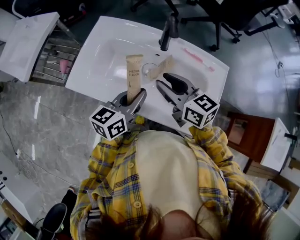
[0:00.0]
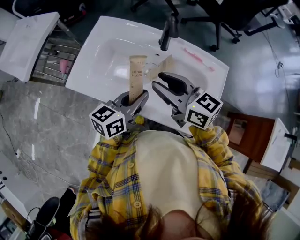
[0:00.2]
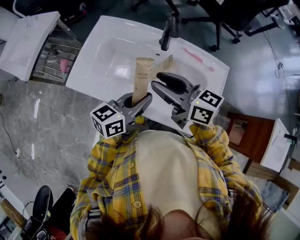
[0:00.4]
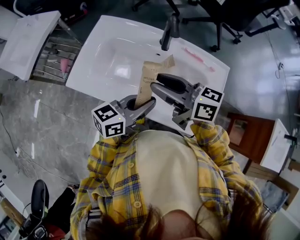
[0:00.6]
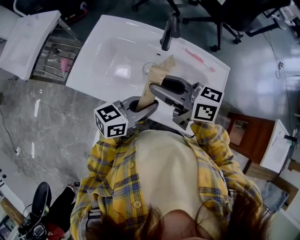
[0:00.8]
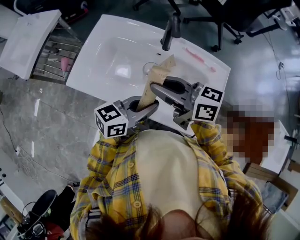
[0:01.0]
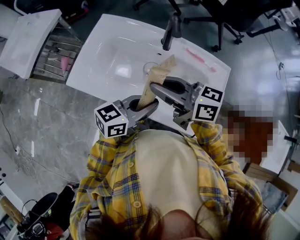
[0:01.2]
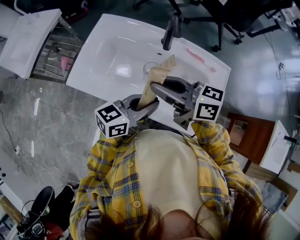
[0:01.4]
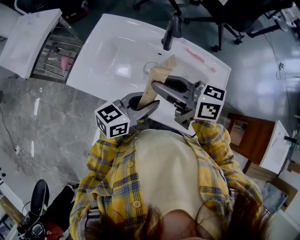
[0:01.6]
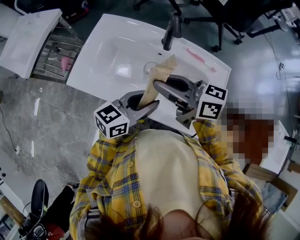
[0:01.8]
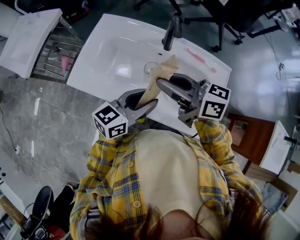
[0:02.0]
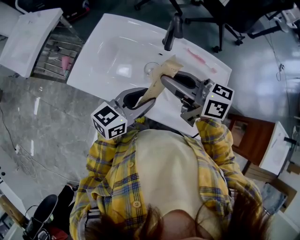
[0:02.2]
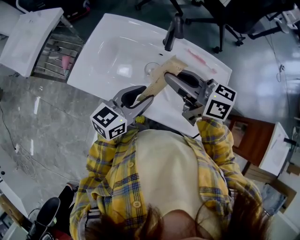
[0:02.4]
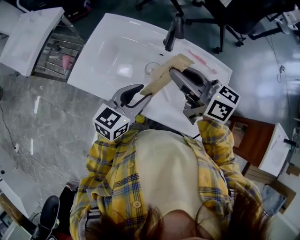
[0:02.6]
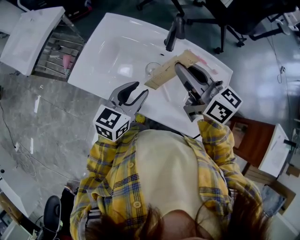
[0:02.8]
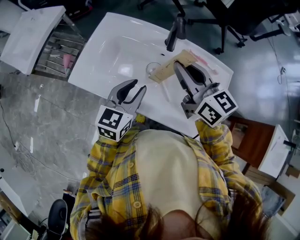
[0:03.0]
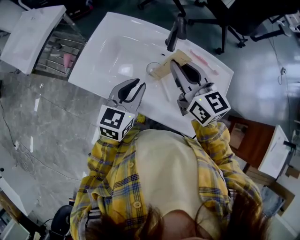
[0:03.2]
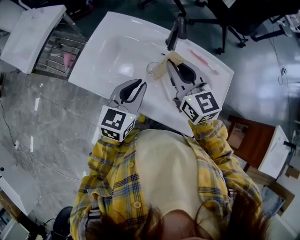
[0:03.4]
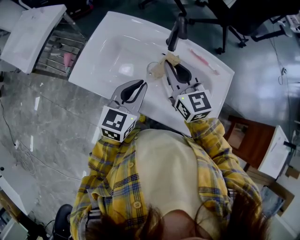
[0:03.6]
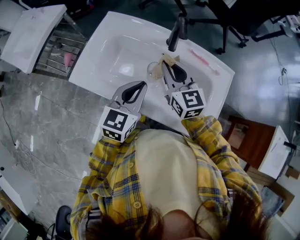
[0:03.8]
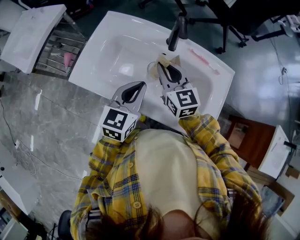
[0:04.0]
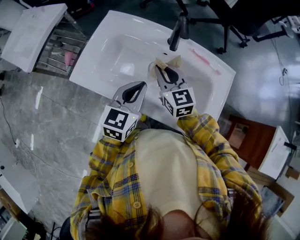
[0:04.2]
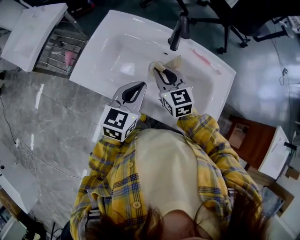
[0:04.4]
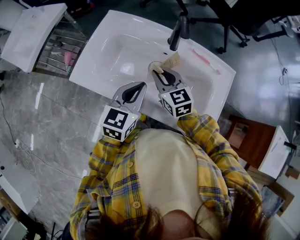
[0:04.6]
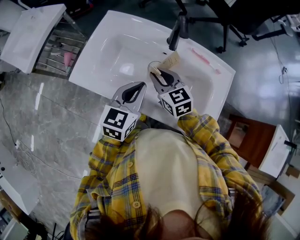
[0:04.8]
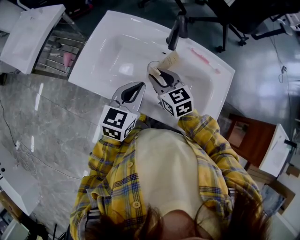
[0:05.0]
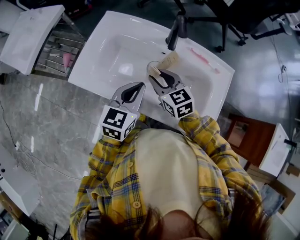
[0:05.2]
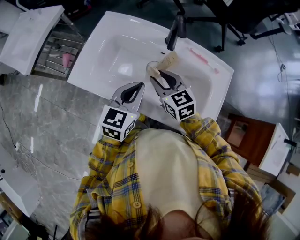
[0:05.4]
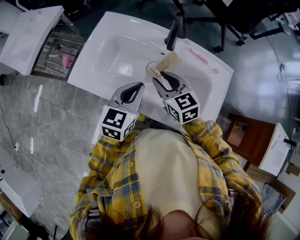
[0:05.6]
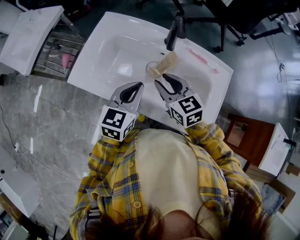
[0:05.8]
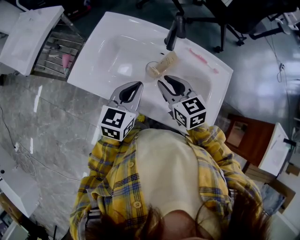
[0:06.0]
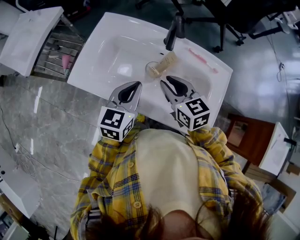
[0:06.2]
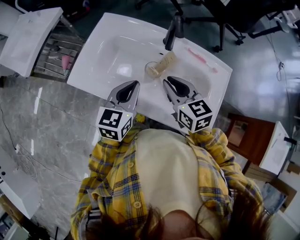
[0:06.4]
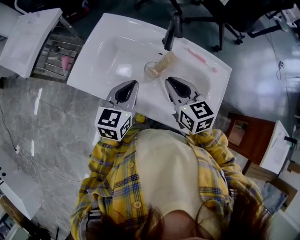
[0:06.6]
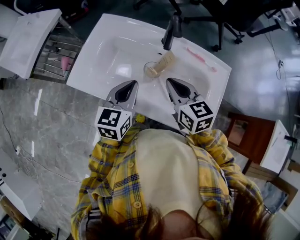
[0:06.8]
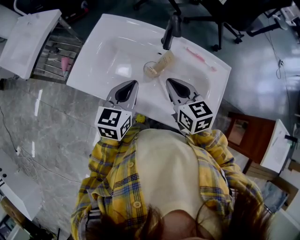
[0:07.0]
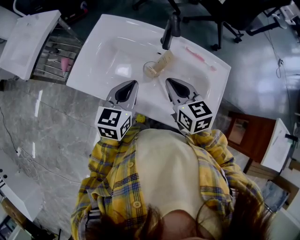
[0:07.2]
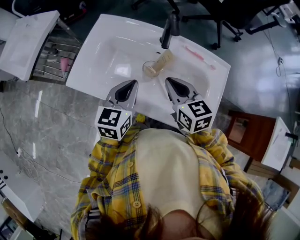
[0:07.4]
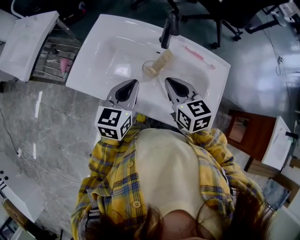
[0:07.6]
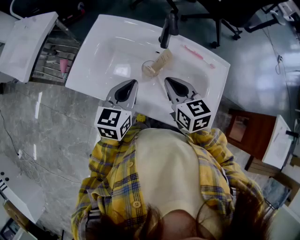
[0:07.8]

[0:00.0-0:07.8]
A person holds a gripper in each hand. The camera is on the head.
0:00.0 to 0:01.6: The right gripper shifts about 5 cm upward, and swivels approximately 30 degrees. The left gripper shifts by roughly 5 cm.
0:01.6 to 0:03.2: The left gripper ends up some 10 cm from where it was, and changes its angle by about 40 degrees. Meanwhile the right gripper ends up some 10 cm from where it was, and swivels roughly 40 degrees.
0:03.2 to 0:04.6: The right gripper travels downward by roughly 15 cm.
0:04.6 to 0:06.2: The right gripper ends up roughly 5 cm from where it was.
0:06.2 to 0:07.8: The grippers stay close to where they were, moving slightly.

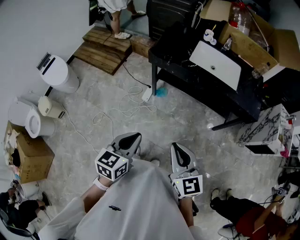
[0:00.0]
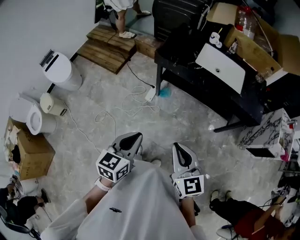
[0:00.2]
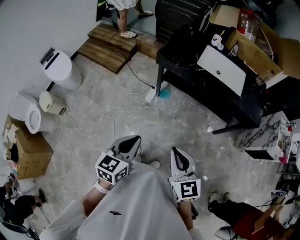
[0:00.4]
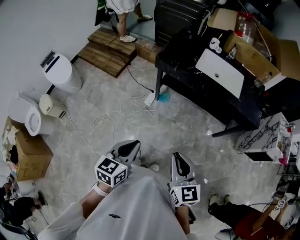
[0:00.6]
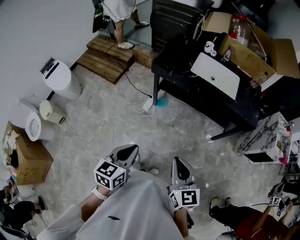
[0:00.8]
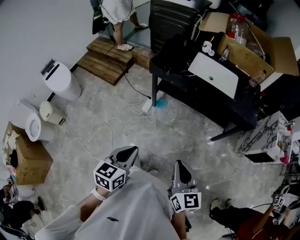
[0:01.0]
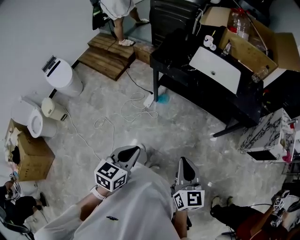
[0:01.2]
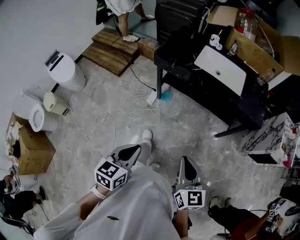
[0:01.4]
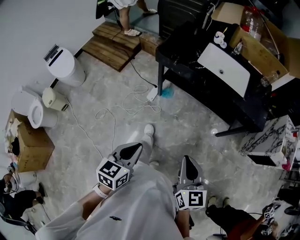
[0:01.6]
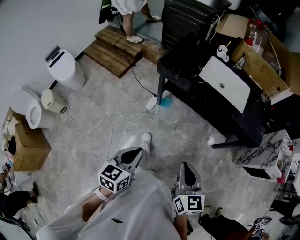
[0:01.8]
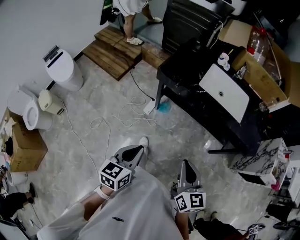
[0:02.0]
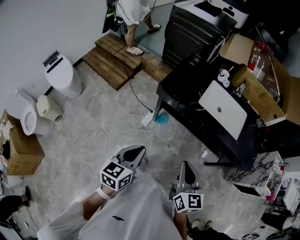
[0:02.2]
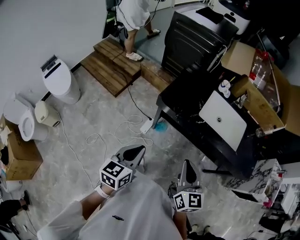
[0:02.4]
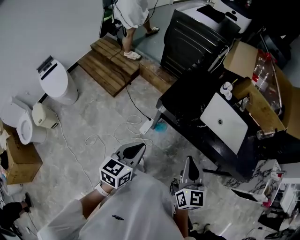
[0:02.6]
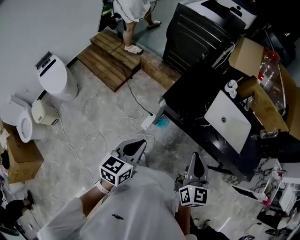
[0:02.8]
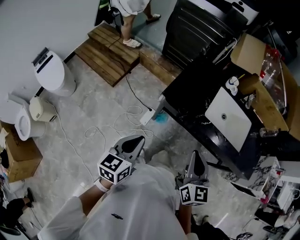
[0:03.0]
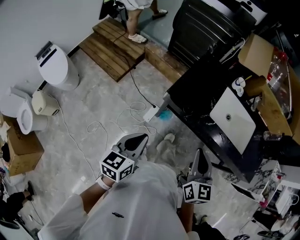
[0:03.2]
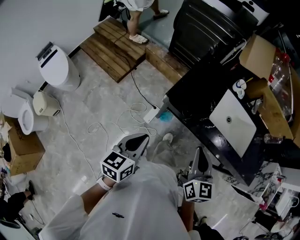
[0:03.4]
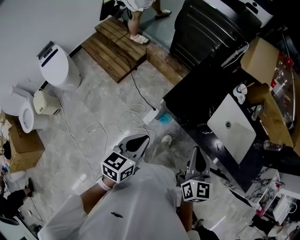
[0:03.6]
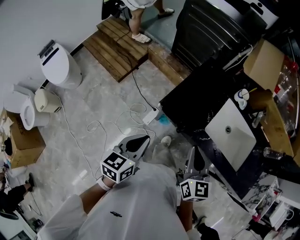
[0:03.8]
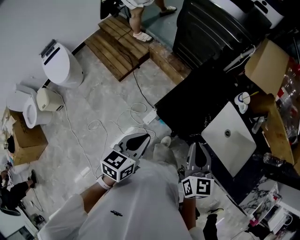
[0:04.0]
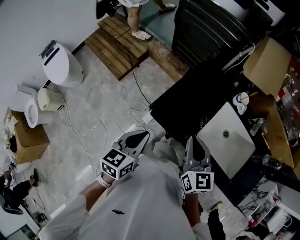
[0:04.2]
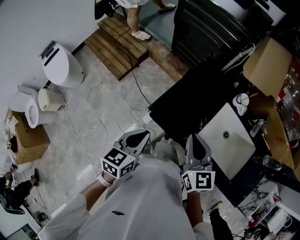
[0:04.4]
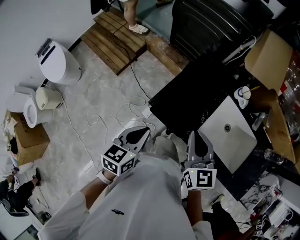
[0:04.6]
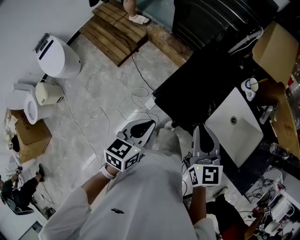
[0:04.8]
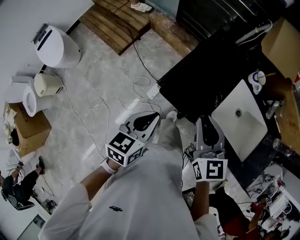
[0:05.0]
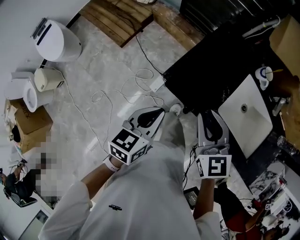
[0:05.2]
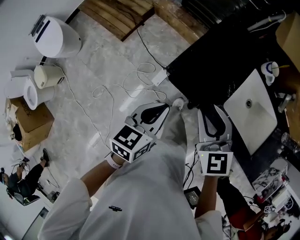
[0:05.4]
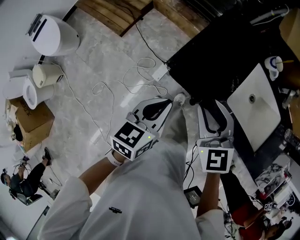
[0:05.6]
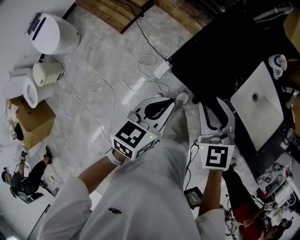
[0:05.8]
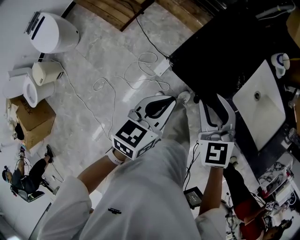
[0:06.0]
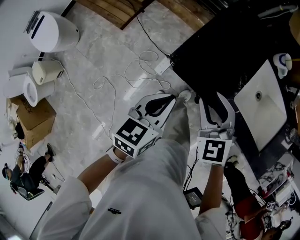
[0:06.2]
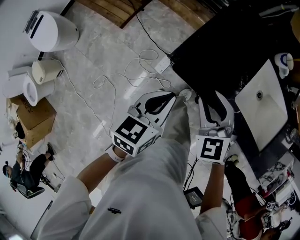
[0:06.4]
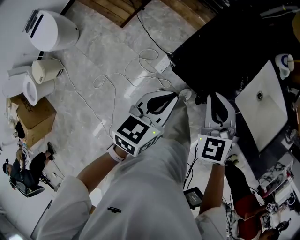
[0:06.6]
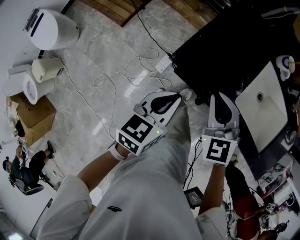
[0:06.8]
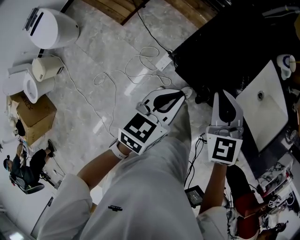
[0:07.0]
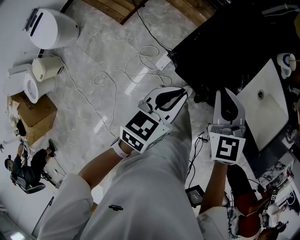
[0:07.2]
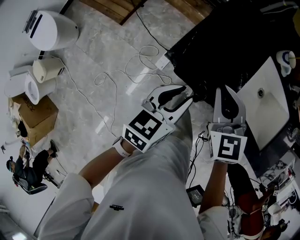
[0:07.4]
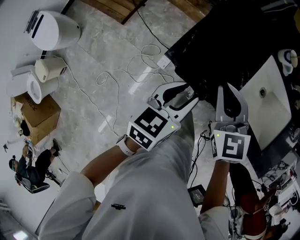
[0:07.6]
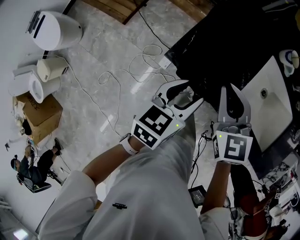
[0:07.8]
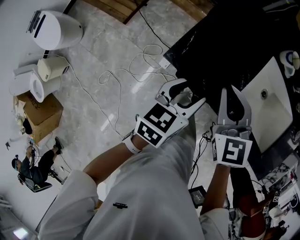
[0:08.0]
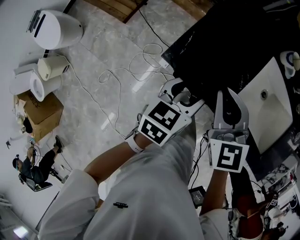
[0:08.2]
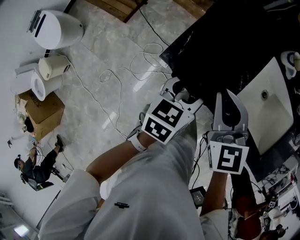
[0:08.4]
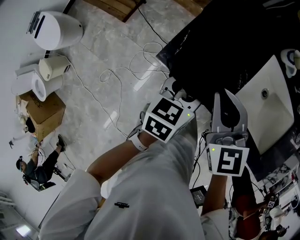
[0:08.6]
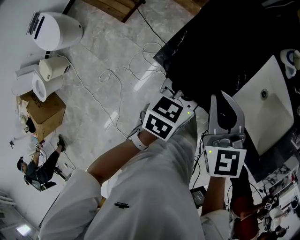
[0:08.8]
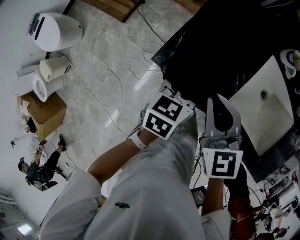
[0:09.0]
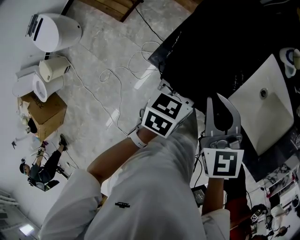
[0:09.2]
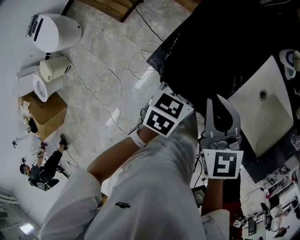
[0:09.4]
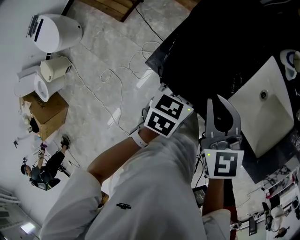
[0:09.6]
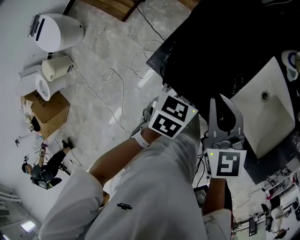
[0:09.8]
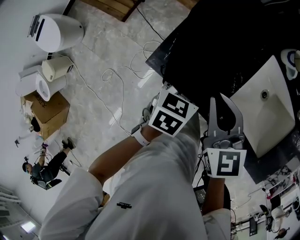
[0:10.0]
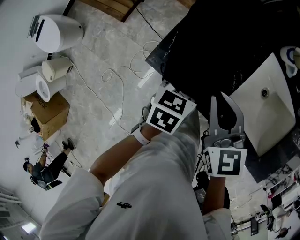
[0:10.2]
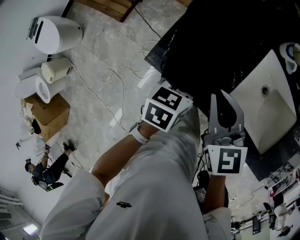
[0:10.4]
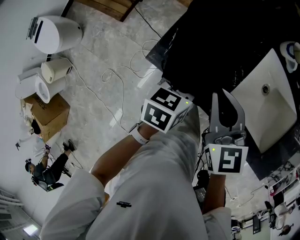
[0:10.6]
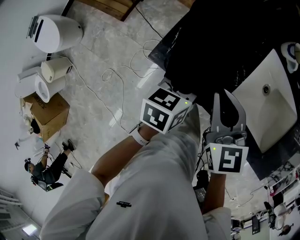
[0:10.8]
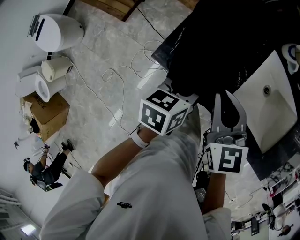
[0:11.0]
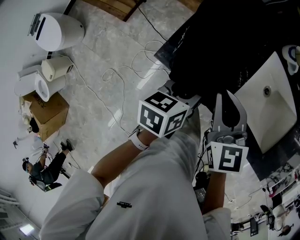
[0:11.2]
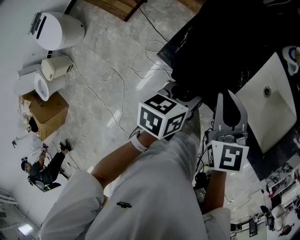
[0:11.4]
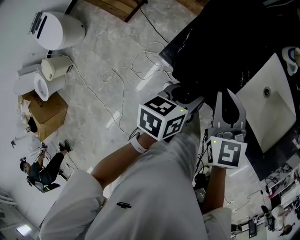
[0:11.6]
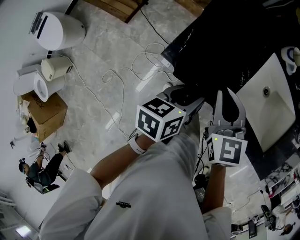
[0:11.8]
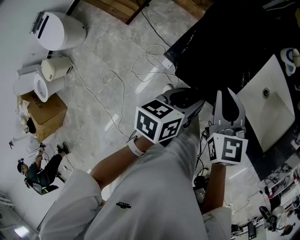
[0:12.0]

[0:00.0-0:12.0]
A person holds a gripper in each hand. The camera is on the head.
0:00.0 to 0:01.6: The right gripper travels to the right by about 5 cm; the left gripper moves some 5 cm.
0:01.6 to 0:03.0: The right gripper goes about 35 cm forward; the left gripper moves forward and to the left, about 40 cm.
0:03.0 to 0:04.4: The left gripper is displaced forward and to the right by about 20 cm, while the right gripper goes about 25 cm forward.
0:04.4 to 0:06.0: The right gripper travels downward and to the left by some 15 cm, changes its angle by approximately 30 degrees, and opens. The left gripper shifts roughly 10 cm downward.
0:06.0 to 0:07.6: The left gripper heads to the right, covering roughly 5 cm, and opens up. Meanwhile the right gripper travels forward by about 5 cm, and closes its fingers.
0:07.6 to 0:09.0: The left gripper moves forward and downward, some 10 cm, and opens.
0:09.0 to 0:10.4: The grippers stay close to where they were, moving slightly.
0:10.4 to 0:12.0: The left gripper travels backward by about 10 cm.

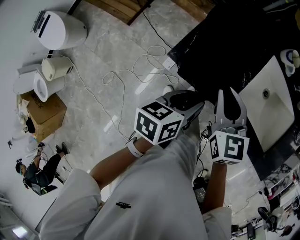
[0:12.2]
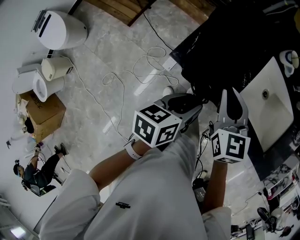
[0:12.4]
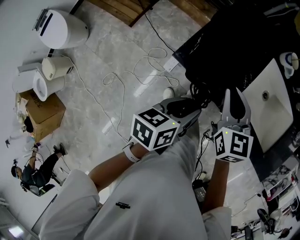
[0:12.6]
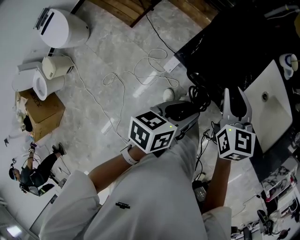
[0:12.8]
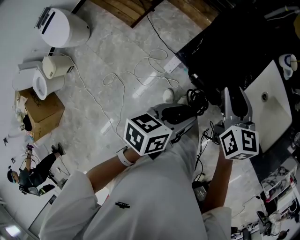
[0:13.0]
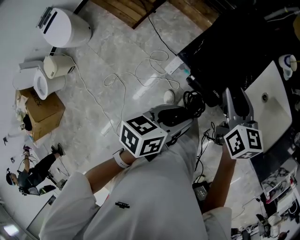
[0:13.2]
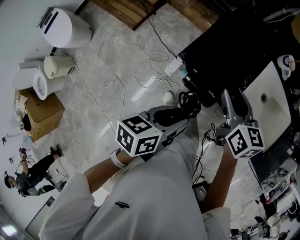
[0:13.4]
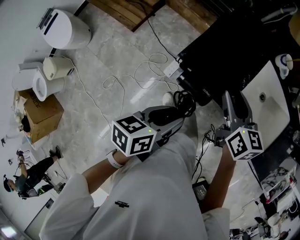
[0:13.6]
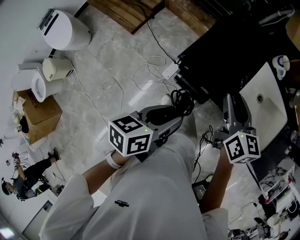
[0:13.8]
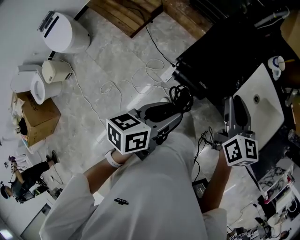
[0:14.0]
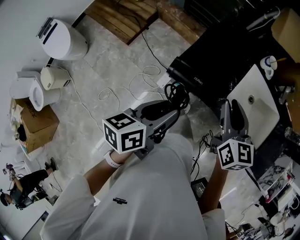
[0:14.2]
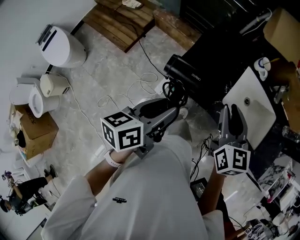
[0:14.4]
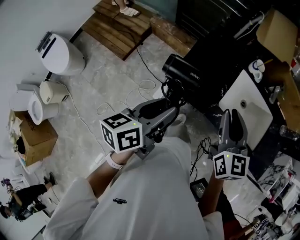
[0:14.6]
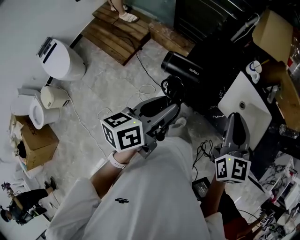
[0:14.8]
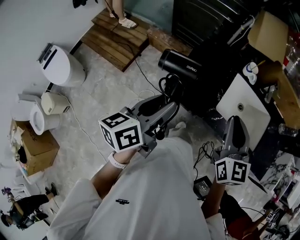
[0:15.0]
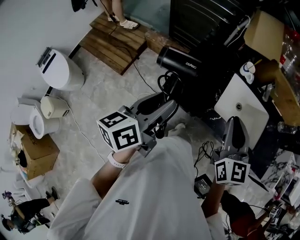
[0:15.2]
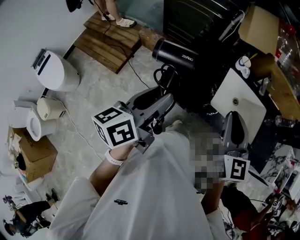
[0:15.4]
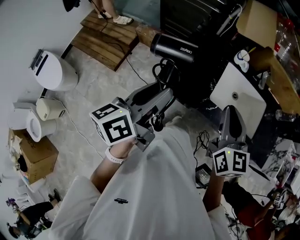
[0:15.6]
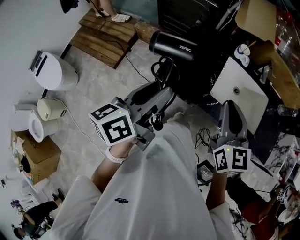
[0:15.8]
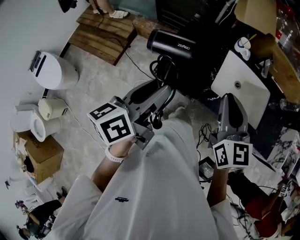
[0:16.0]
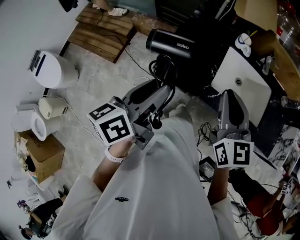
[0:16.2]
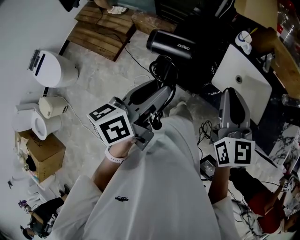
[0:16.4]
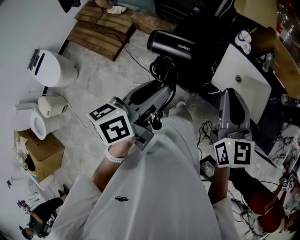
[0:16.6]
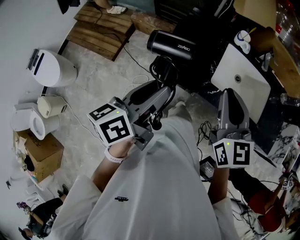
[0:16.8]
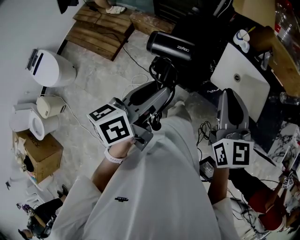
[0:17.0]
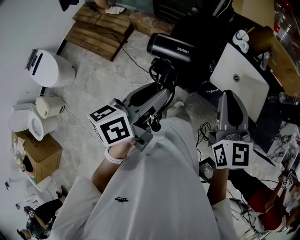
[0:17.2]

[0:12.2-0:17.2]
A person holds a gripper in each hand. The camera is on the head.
0:12.2 to 0:13.8: The right gripper opens up. Meanwhile the left gripper heads backward, upward and to the left, covering some 15 cm.
0:13.8 to 0:15.6: The left gripper moves upward and forward, roughly 20 cm, and turns by some 30 degrees; the right gripper heads upward and to the right, covering some 15 cm, changes its angle by about 30 degrees, and closes.
0:15.6 to 0:17.2: The left gripper ends up approximately 5 cm from where it was.
